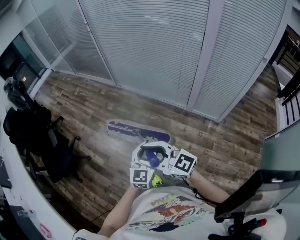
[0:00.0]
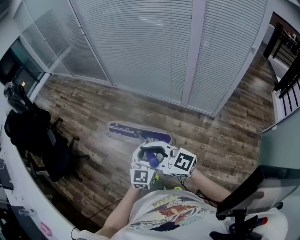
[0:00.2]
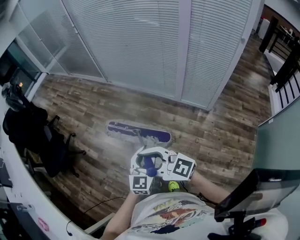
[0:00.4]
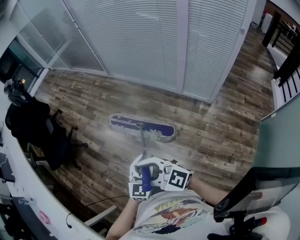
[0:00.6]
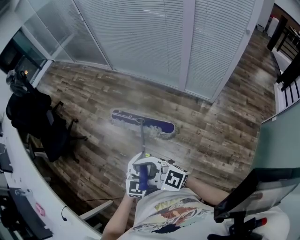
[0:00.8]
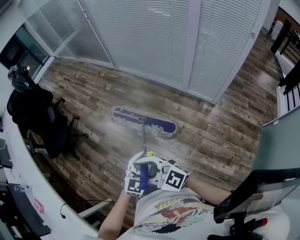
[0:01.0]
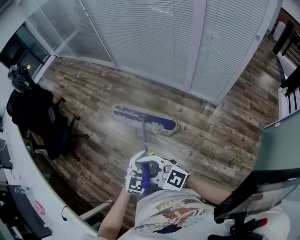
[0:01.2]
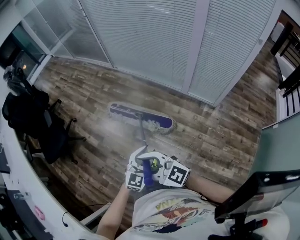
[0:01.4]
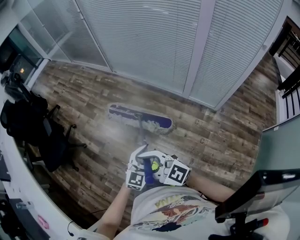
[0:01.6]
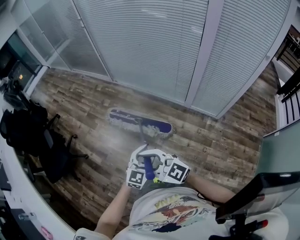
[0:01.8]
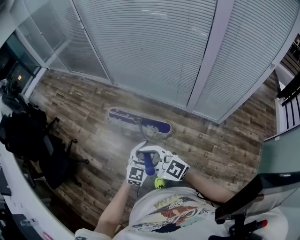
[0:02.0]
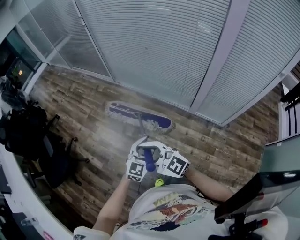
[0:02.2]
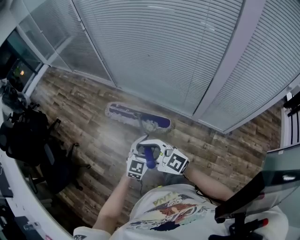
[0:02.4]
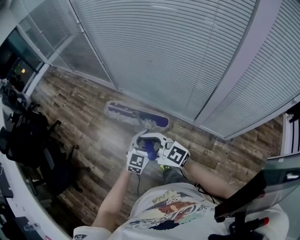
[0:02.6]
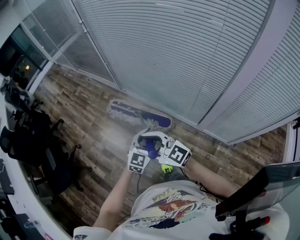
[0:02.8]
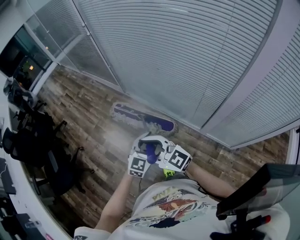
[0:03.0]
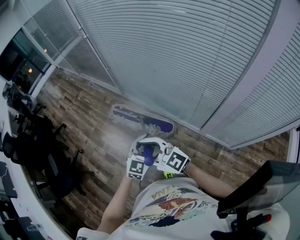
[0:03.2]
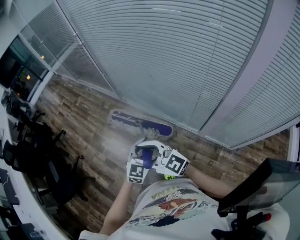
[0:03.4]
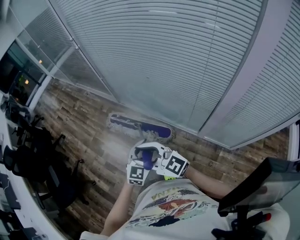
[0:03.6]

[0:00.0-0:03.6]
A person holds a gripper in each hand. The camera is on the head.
0:00.0 to 0:01.8: Both grippers travel together downward, approximately 5 cm. The right gripper moves about 30 cm backward and comes back; the left gripper travels backward and back again, roughly 25 cm each way.
0:01.8 to 0:03.6: The pair of grippers is taken forward, approximately 50 cm.

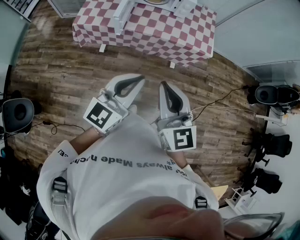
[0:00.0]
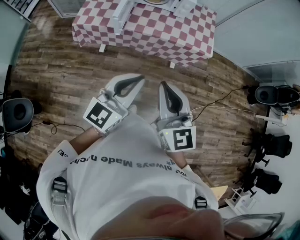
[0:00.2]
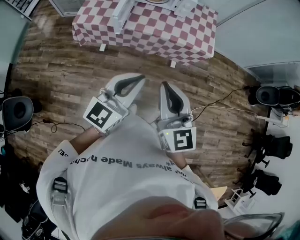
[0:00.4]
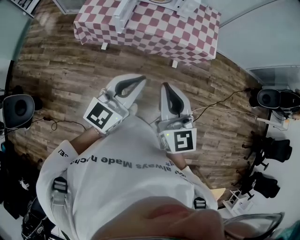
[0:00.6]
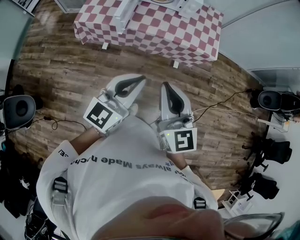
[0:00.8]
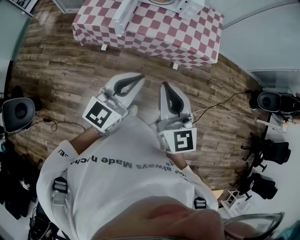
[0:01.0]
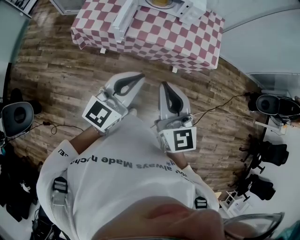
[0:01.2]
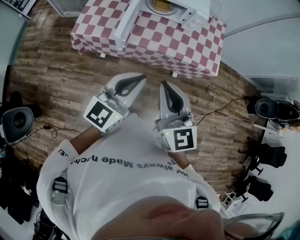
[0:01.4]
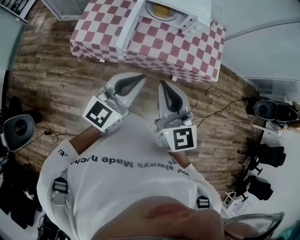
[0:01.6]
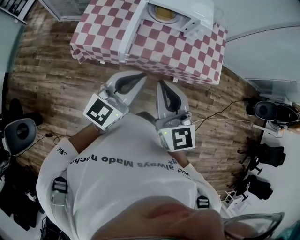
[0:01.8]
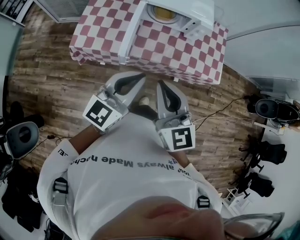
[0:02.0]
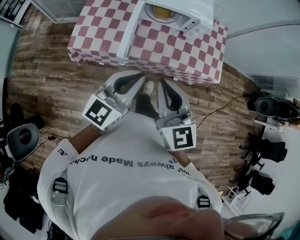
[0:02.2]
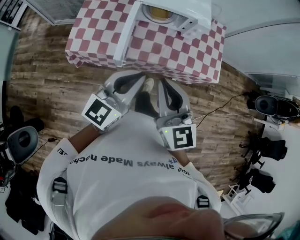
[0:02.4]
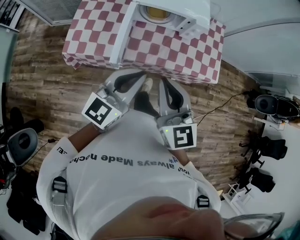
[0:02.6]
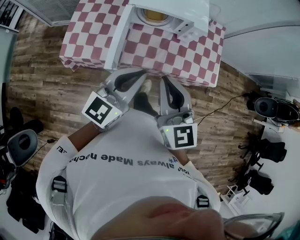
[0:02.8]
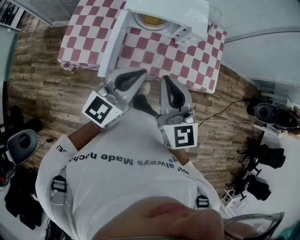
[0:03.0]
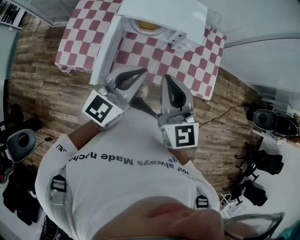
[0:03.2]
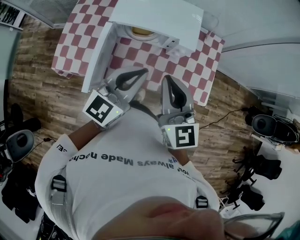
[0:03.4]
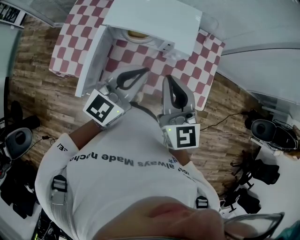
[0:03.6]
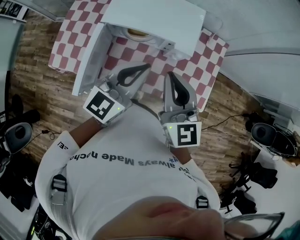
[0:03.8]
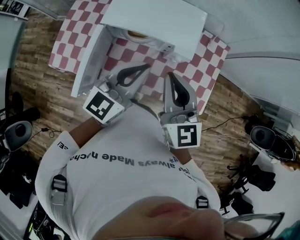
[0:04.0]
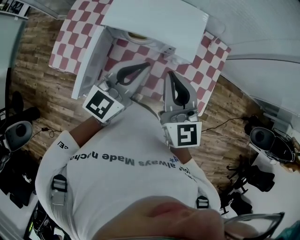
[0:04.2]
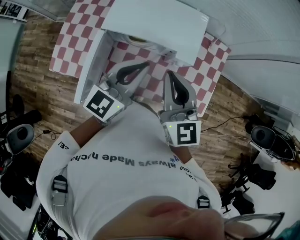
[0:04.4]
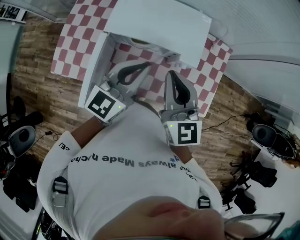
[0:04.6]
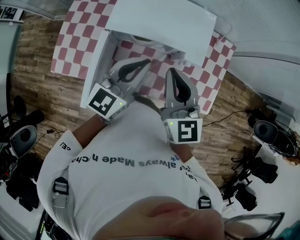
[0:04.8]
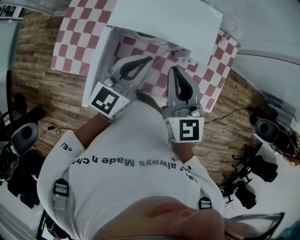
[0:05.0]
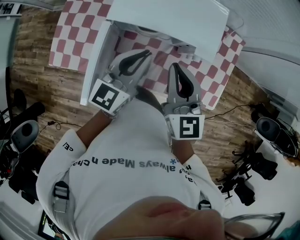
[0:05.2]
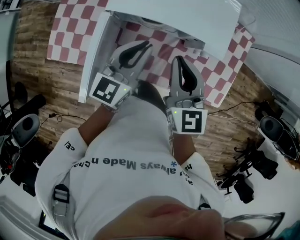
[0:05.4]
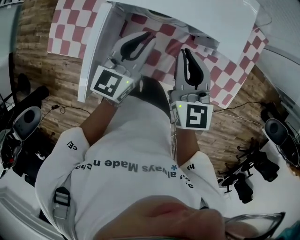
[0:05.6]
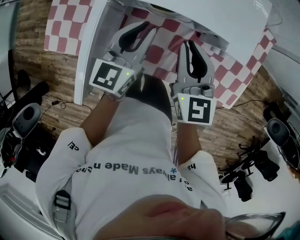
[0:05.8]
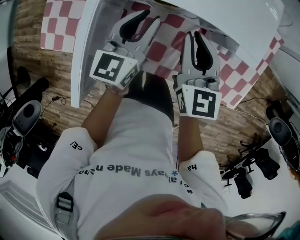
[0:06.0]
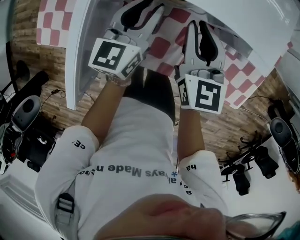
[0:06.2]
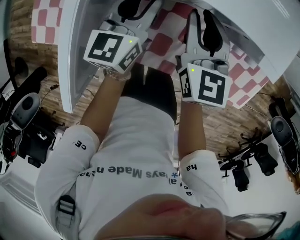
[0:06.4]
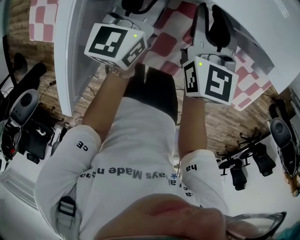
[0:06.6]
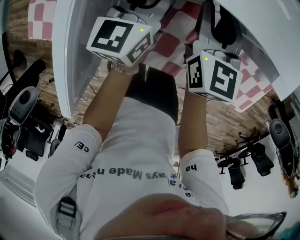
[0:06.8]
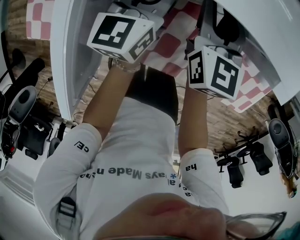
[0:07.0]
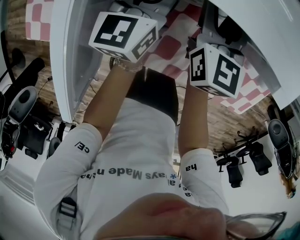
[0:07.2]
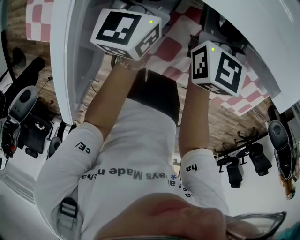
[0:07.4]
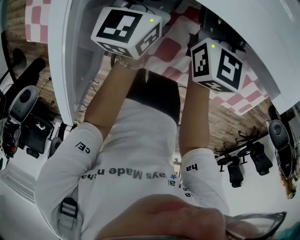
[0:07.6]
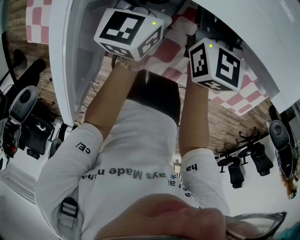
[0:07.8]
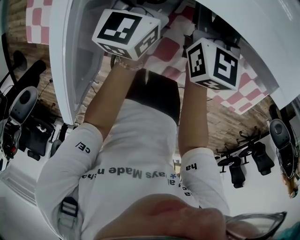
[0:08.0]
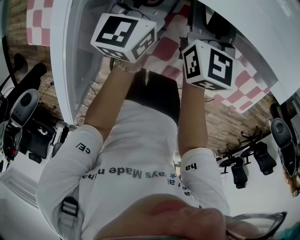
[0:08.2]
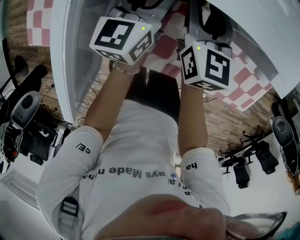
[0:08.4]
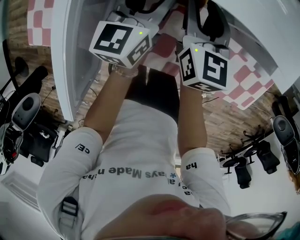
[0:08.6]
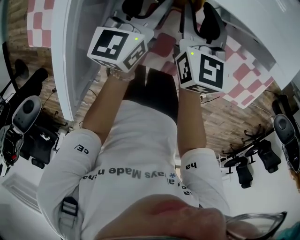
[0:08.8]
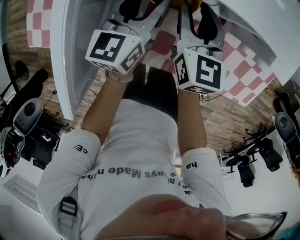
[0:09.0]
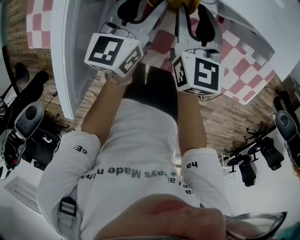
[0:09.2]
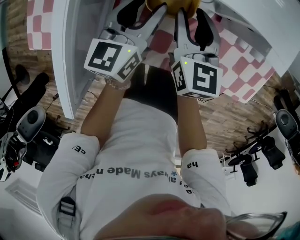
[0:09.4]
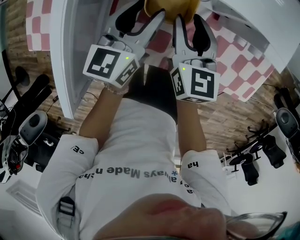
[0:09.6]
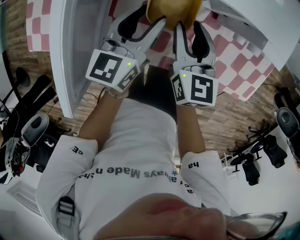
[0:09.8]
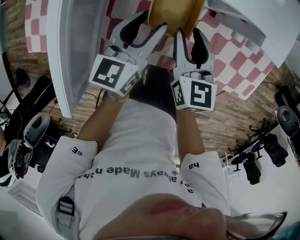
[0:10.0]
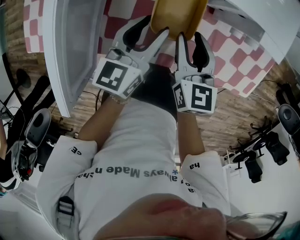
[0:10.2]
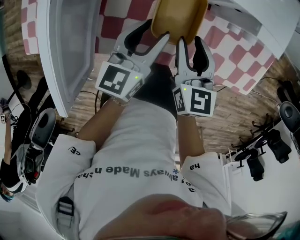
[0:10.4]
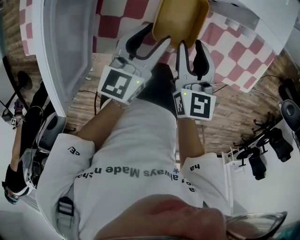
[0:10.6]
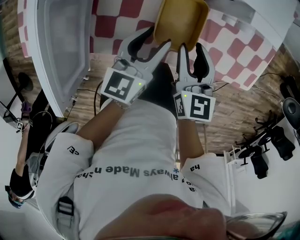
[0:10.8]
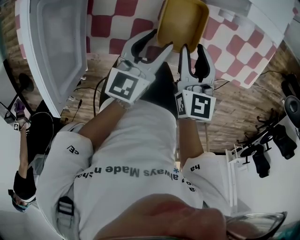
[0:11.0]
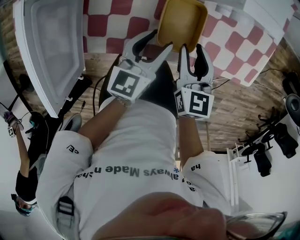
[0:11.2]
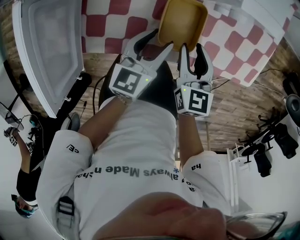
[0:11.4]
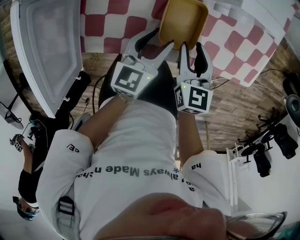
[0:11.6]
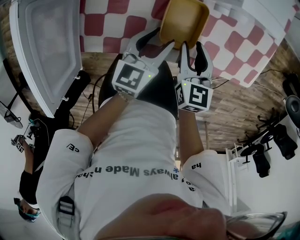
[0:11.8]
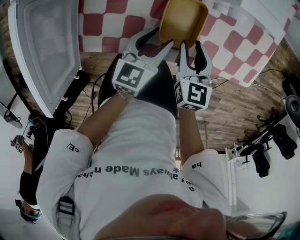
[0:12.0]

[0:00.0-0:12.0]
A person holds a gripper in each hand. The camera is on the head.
0:00.0 to 0:01.6: The grippers both shift forward and to the left by approximately 25 cm.
0:01.6 to 0:03.0: The two grippers go some 20 cm forward.
0:03.0 to 0:04.4: The grippers both shift forward and to the right by roughly 25 cm.
0:04.4 to 0:06.0: The right gripper shifts approximately 30 cm downward and forward; the left gripper shifts approximately 30 cm downward, forward and to the left, swivels about 20 degrees, and opens.
0:06.0 to 0:07.6: Both grippers travel together downward and forward, approximately 15 cm. The right gripper opens, while the left gripper opens up.
0:07.6 to 0:09.0: Both grippers move backward, about 5 cm.
0:09.0 to 0:10.4: Both grippers travel together backward and to the right, about 15 cm.
0:10.4 to 0:12.0: The two grippers go about 15 cm to the right and downward.

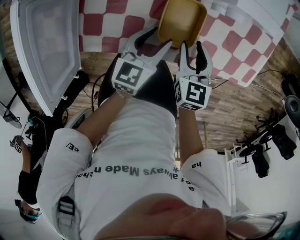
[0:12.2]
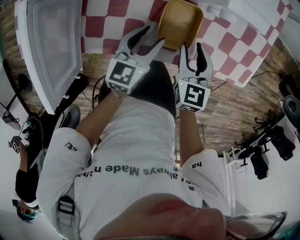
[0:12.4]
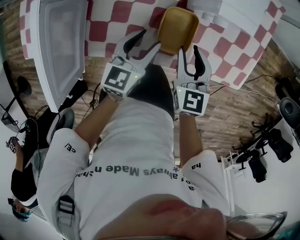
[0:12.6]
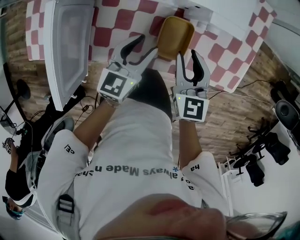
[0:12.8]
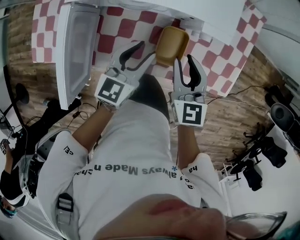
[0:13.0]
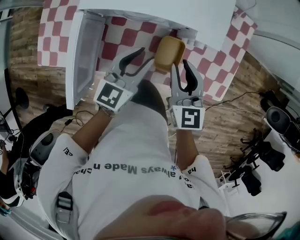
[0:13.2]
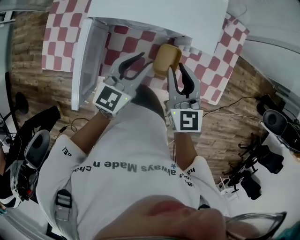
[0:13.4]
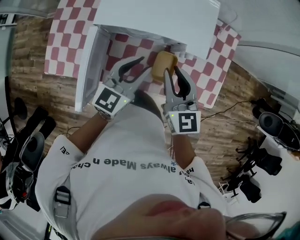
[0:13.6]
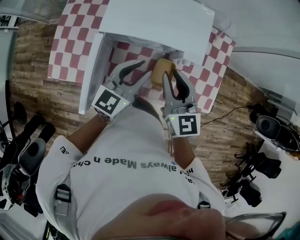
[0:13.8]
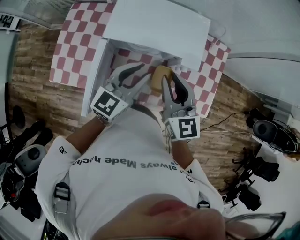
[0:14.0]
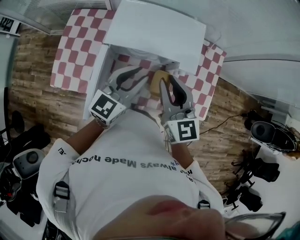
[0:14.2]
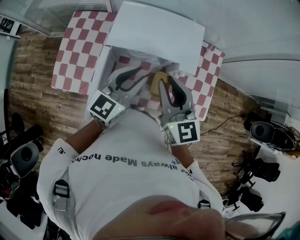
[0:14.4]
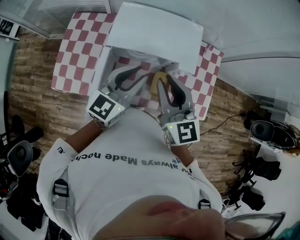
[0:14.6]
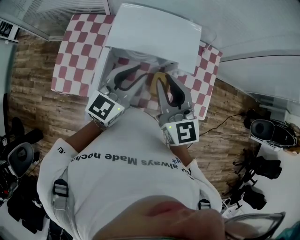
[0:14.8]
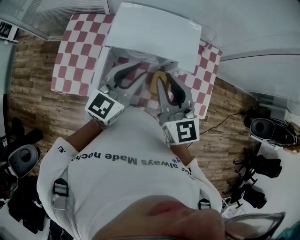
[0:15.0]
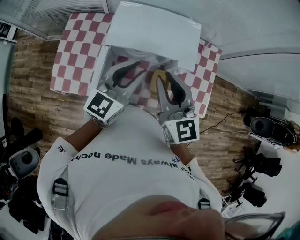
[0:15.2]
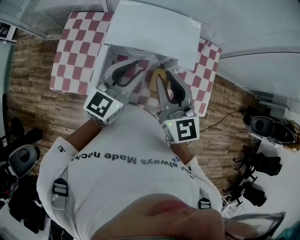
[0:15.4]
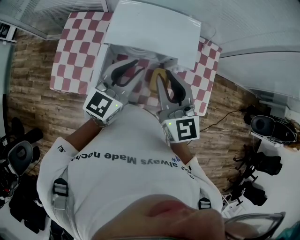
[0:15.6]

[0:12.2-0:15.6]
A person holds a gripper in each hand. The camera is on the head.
0:12.2 to 0:13.8: Both grippers move upward, approximately 35 cm. The right gripper changes its angle by about 30 degrees. The left gripper turns by about 30 degrees, and closes.
0:13.8 to 0:15.6: The grippers both shift upward by some 10 cm.

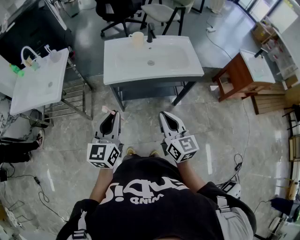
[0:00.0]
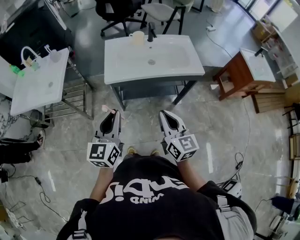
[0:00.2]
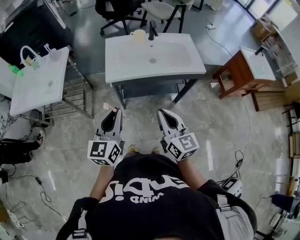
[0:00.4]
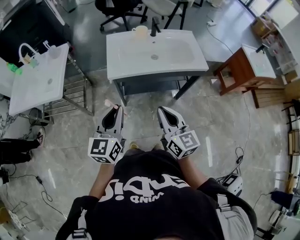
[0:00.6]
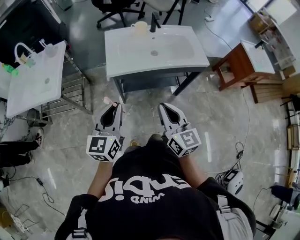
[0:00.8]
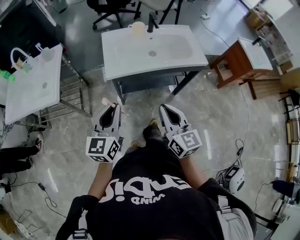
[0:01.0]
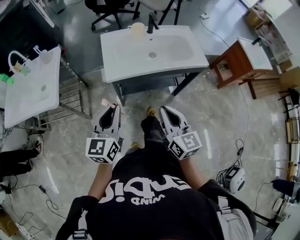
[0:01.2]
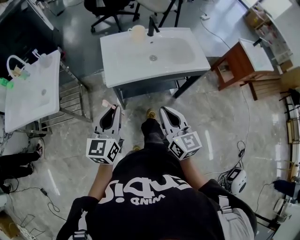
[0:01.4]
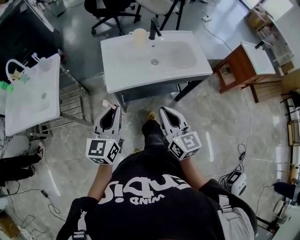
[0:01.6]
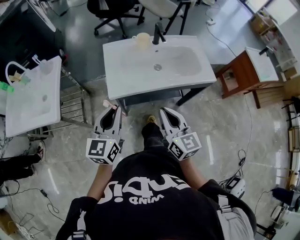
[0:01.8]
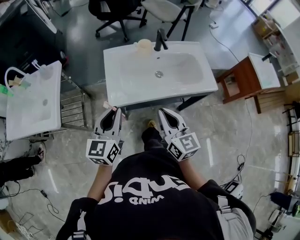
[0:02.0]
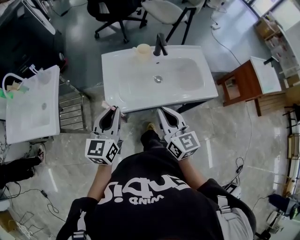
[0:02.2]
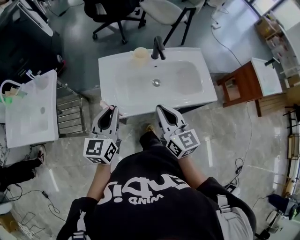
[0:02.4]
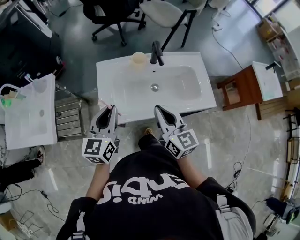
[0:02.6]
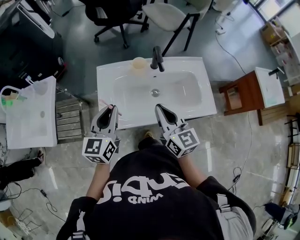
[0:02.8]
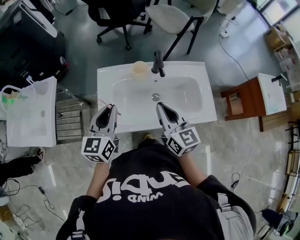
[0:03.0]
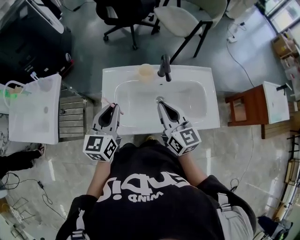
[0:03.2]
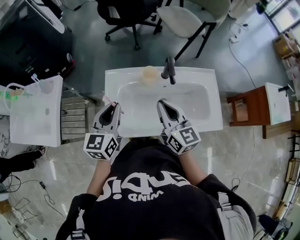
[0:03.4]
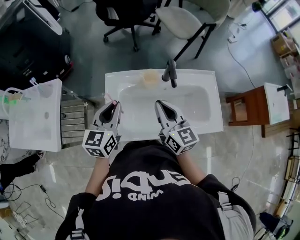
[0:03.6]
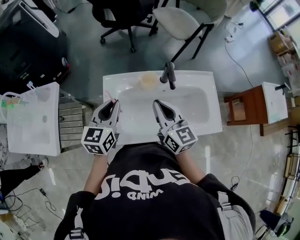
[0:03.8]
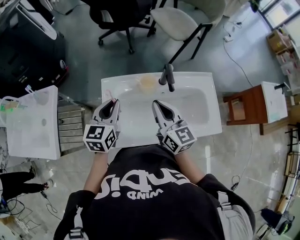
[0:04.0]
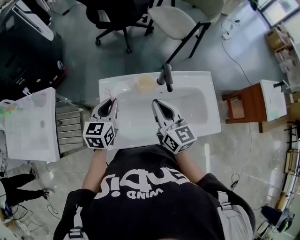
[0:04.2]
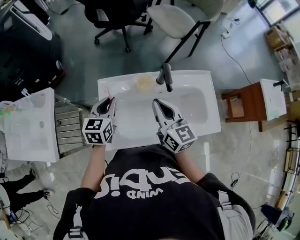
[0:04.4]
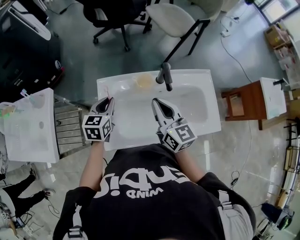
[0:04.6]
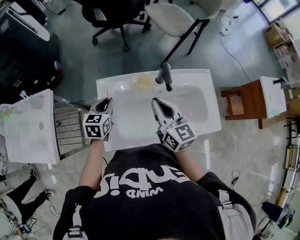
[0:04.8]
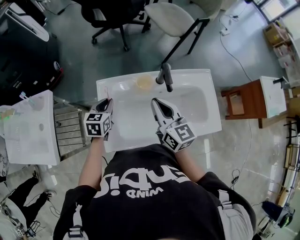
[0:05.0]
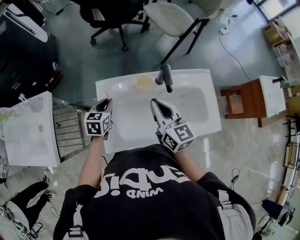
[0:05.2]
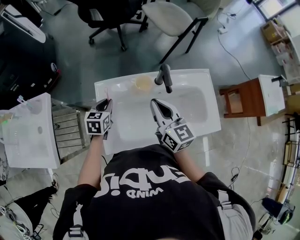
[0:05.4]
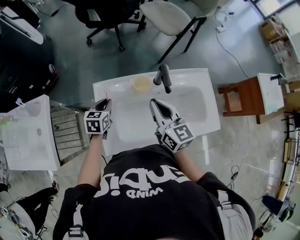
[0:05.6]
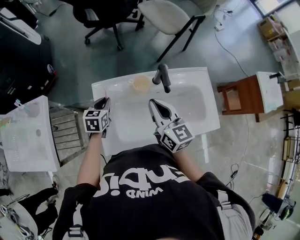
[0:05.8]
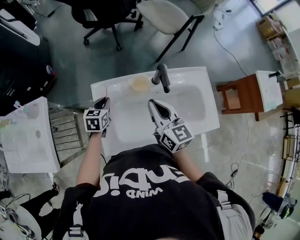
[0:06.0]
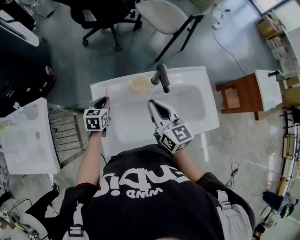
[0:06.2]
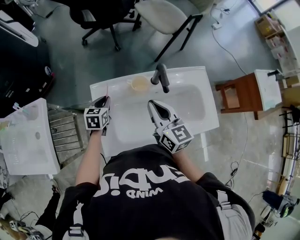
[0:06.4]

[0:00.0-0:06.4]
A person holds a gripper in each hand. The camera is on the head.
0:00.0 to 0:01.6: Both grippers travel together forward and to the left, roughly 15 cm.
0:01.6 to 0:03.2: Both grippers travel together forward, some 30 cm.
0:03.2 to 0:04.8: The left gripper moves forward and downward, roughly 20 cm, and changes its angle by some 20 degrees, while the right gripper heads forward, covering some 10 cm.
0:04.8 to 0:06.4: The left gripper is displaced downward and forward by approximately 10 cm.
